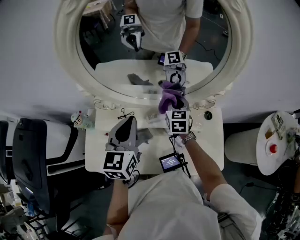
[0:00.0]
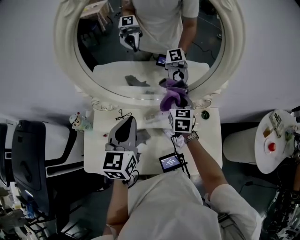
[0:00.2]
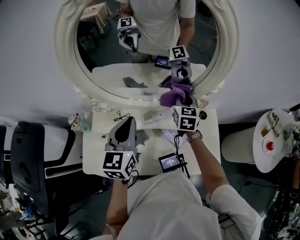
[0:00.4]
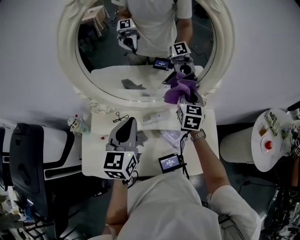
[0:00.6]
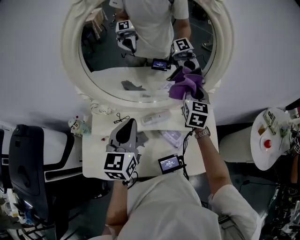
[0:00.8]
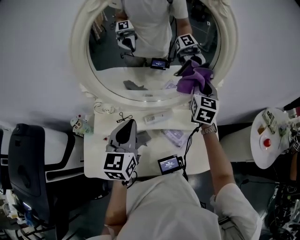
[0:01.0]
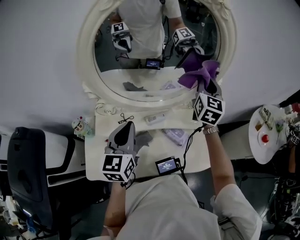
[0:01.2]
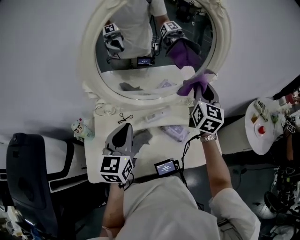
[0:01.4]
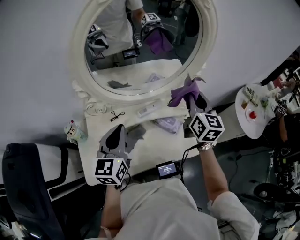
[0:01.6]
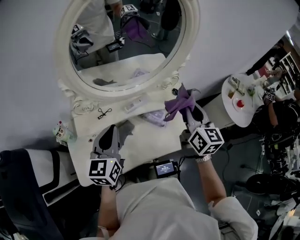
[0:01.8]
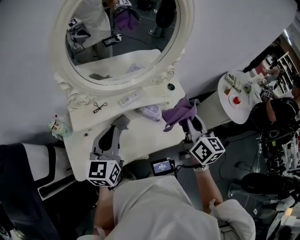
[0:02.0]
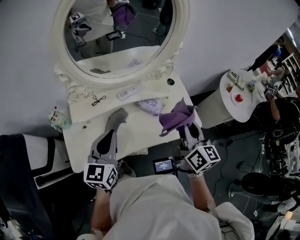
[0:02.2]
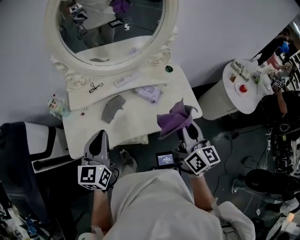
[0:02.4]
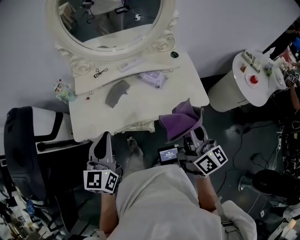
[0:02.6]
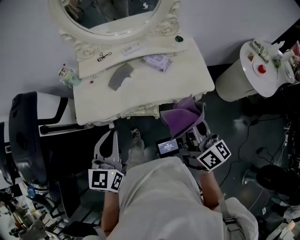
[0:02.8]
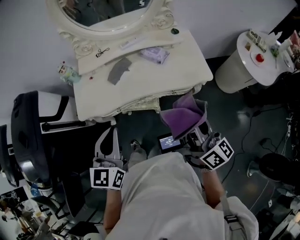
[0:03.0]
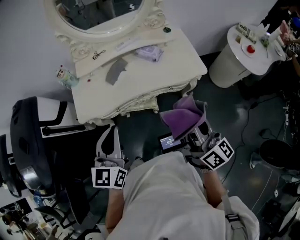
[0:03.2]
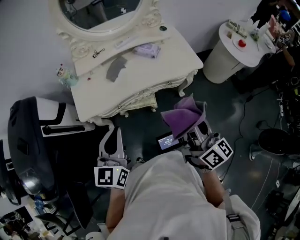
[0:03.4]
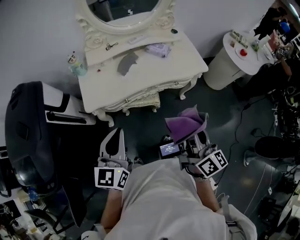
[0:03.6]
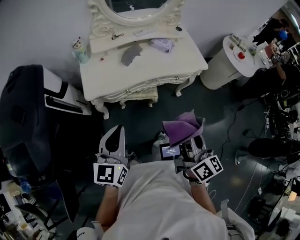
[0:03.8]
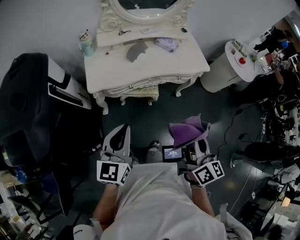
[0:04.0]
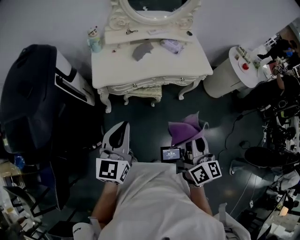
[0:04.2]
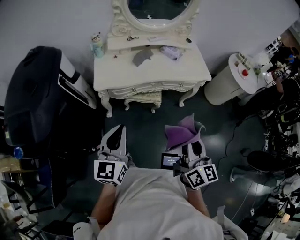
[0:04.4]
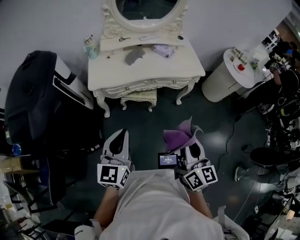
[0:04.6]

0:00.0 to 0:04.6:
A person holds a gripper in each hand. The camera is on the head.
0:00.0 to 0:01.6: The left gripper goes about 10 cm backward and to the left, while the right gripper moves upward and backward, roughly 25 cm, and rotates about 30 degrees.
0:01.6 to 0:03.0: The grippers both shift backward by some 40 cm. The right gripper turns by roughly 40 degrees.
0:03.0 to 0:04.6: The two grippers go roughly 35 cm backward. The right gripper swivels approximately 30 degrees.

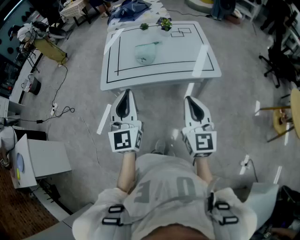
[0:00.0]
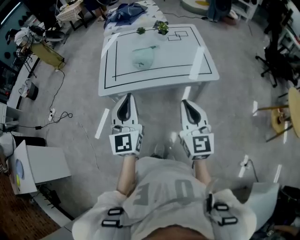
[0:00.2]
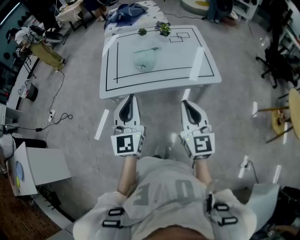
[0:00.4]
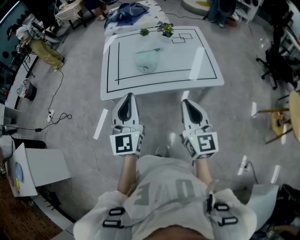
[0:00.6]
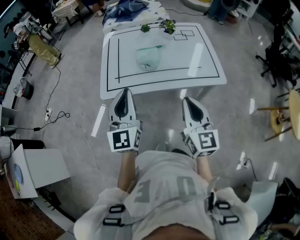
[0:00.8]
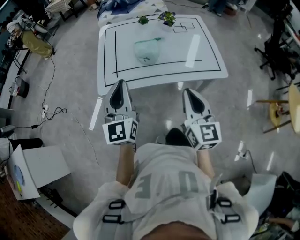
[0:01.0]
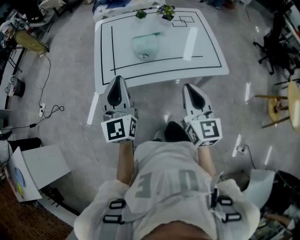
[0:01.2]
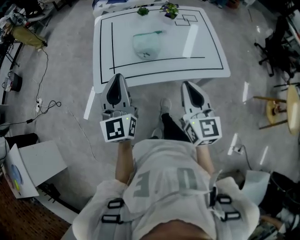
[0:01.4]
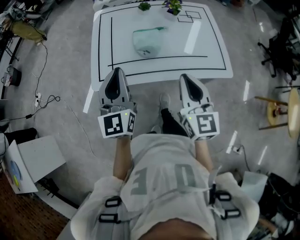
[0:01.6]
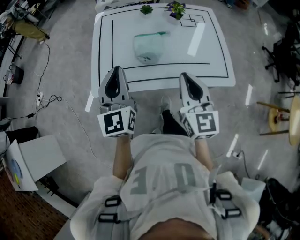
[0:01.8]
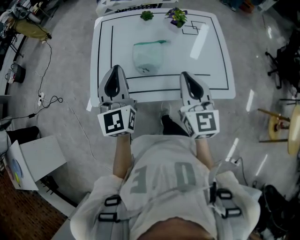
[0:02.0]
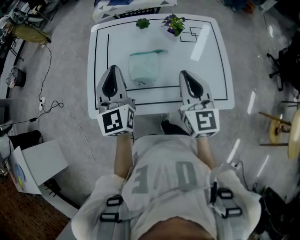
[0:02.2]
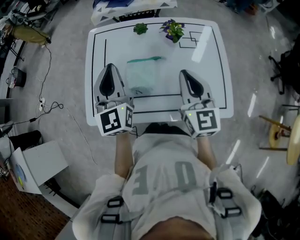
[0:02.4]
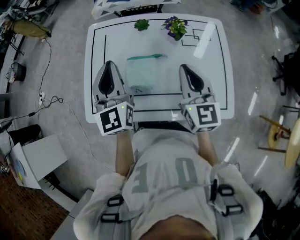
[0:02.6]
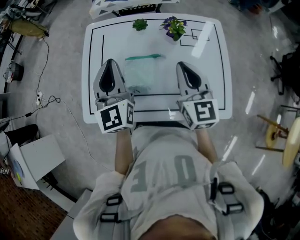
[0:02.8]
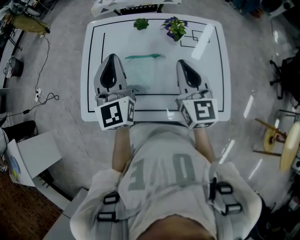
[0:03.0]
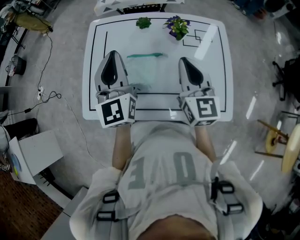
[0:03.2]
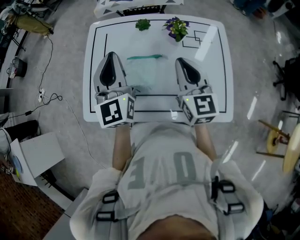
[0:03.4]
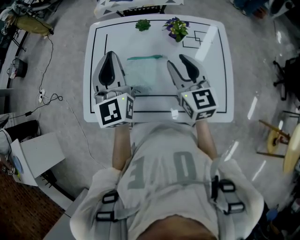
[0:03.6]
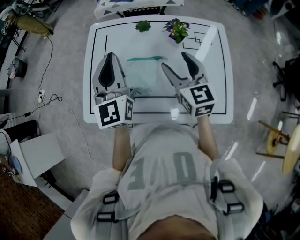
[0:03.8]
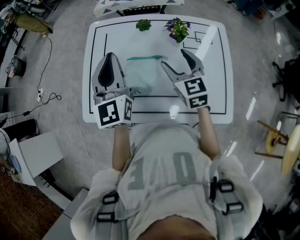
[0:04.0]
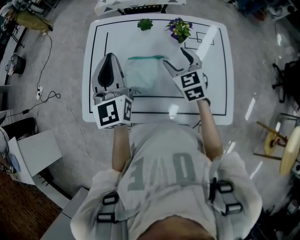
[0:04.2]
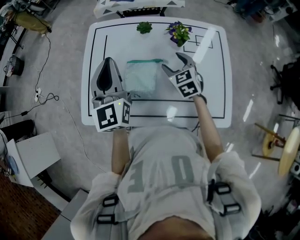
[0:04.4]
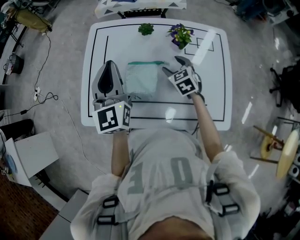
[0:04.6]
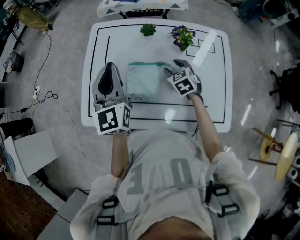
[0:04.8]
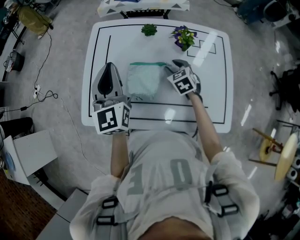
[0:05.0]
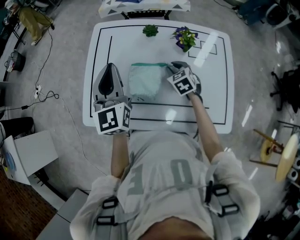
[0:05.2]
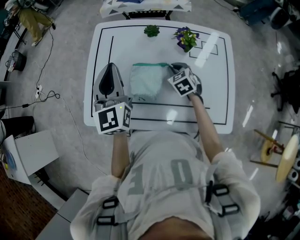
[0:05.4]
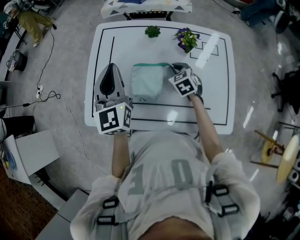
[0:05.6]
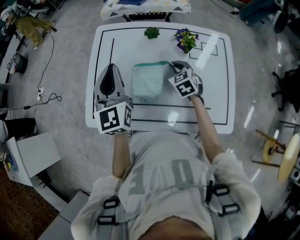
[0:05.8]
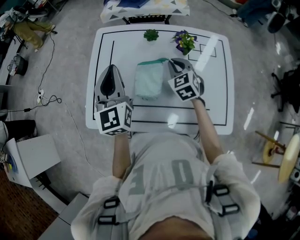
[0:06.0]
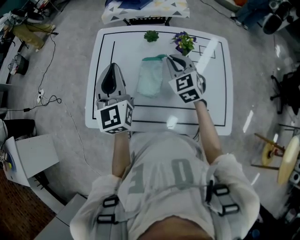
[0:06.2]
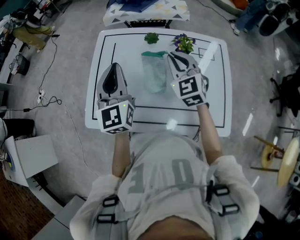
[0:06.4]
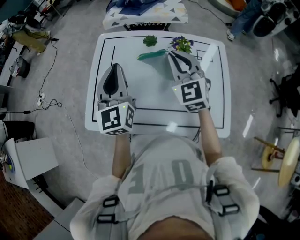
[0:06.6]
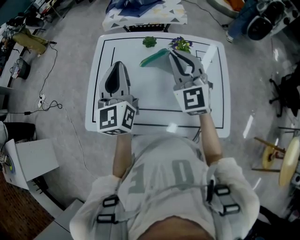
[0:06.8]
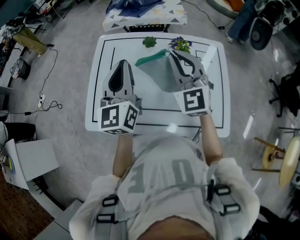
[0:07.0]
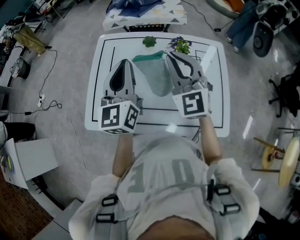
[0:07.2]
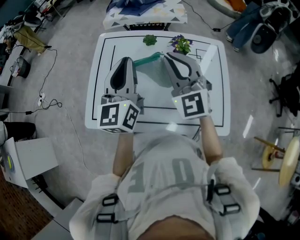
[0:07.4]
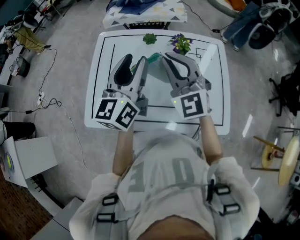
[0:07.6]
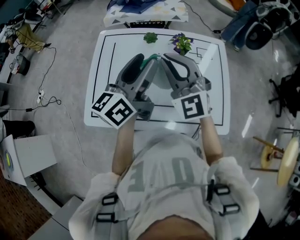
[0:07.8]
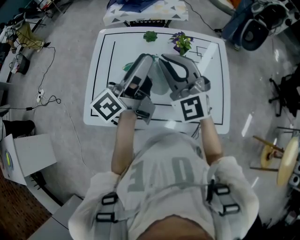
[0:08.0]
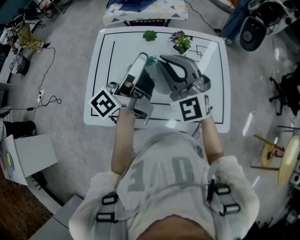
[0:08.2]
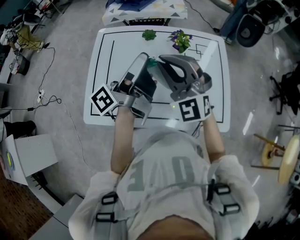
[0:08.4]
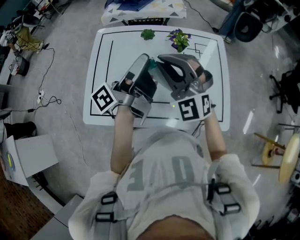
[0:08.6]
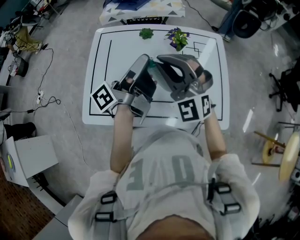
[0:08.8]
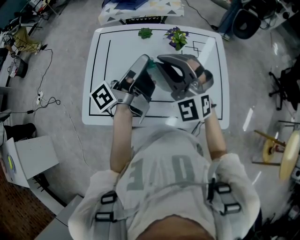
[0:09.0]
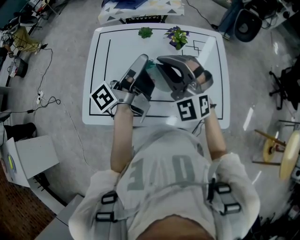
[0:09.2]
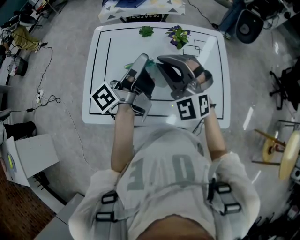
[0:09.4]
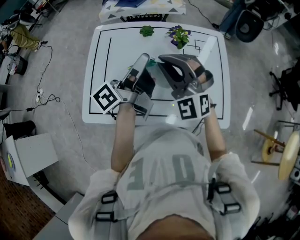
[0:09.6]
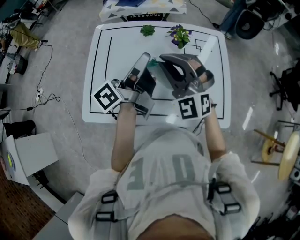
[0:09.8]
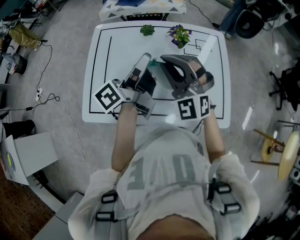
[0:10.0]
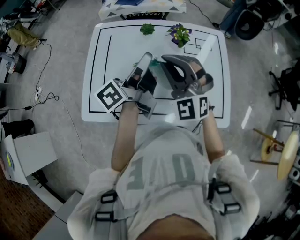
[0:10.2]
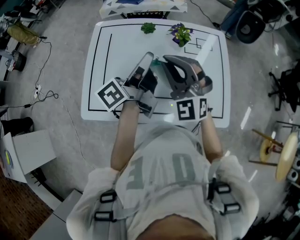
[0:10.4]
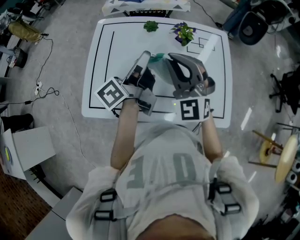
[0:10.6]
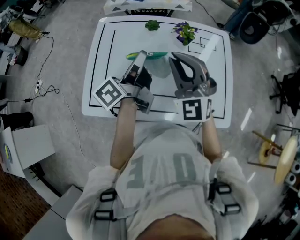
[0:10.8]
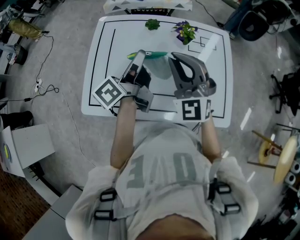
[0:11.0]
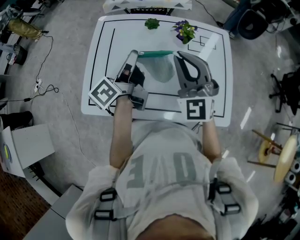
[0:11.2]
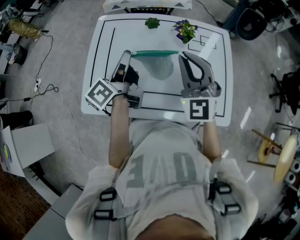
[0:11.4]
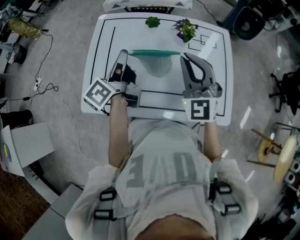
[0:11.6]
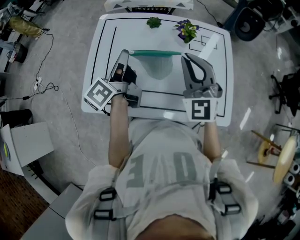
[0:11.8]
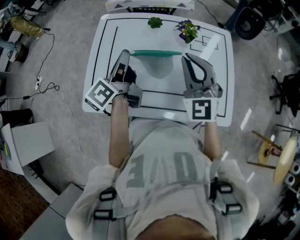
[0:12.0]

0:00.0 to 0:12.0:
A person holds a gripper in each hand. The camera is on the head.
0:00.0 to 0:01.6: Both grippers move forward and to the left, about 20 cm.
0:01.6 to 0:03.0: The left gripper shifts some 25 cm forward and to the right. Meanwhile the right gripper moves forward, roughly 25 cm.
0:03.0 to 0:04.4: The right gripper moves downward and forward, some 20 cm, tilts its fingers some 30 degrees downward, and opens its fingers.
0:04.4 to 0:06.0: The right gripper reaches roughly 5 cm downward, then returns, and closes its fingers.
0:06.0 to 0:07.6: The right gripper heads upward, covering approximately 20 cm, and changes its angle by roughly 40 degrees. Meanwhile the left gripper heads to the right and upward, covering some 10 cm, swivels approximately 30 degrees, and opens its fingers.
0:07.6 to 0:09.0: The left gripper rolls counterclockwise, seen from behind, by roughly 60 degrees, and closes up.
0:09.0 to 0:10.4: The grippers make only small movements.
0:10.4 to 0:12.0: The left gripper travels to the left by about 10 cm, and turns by roughly 20 degrees.

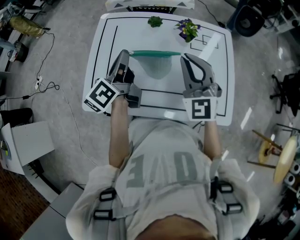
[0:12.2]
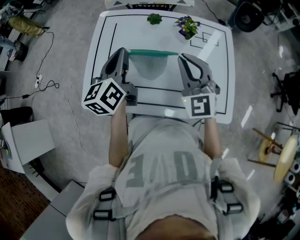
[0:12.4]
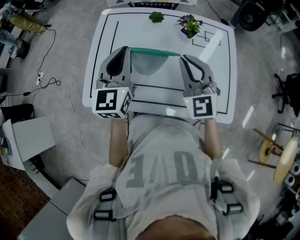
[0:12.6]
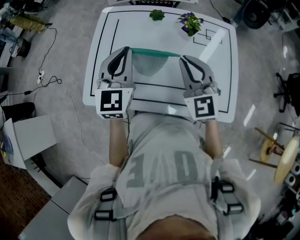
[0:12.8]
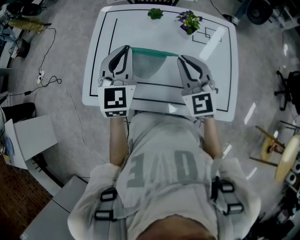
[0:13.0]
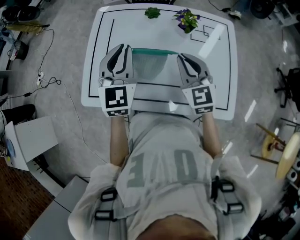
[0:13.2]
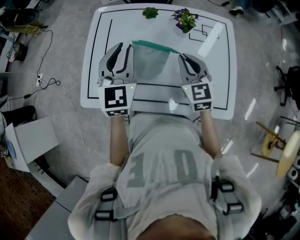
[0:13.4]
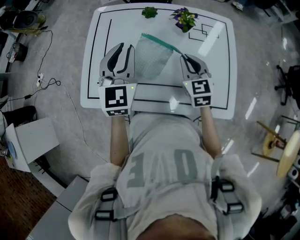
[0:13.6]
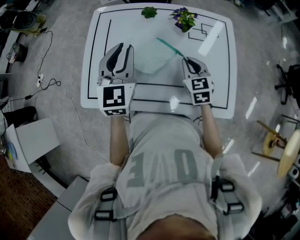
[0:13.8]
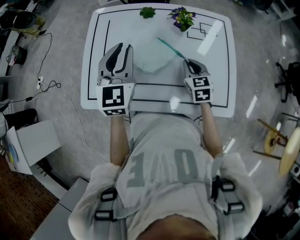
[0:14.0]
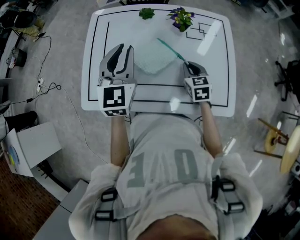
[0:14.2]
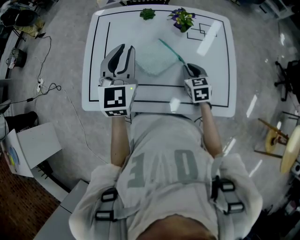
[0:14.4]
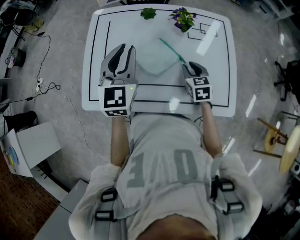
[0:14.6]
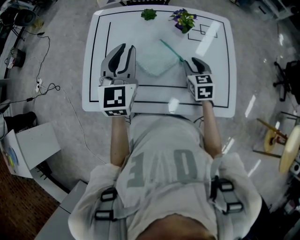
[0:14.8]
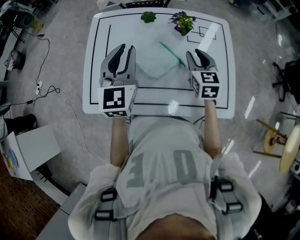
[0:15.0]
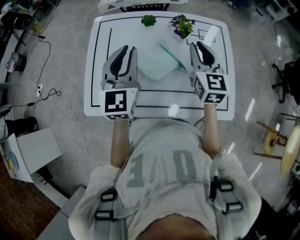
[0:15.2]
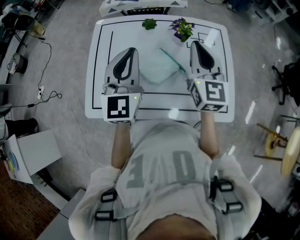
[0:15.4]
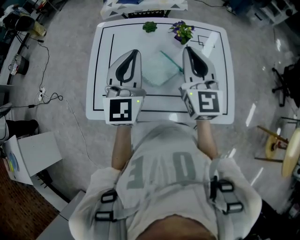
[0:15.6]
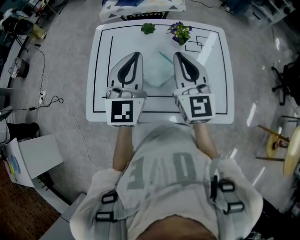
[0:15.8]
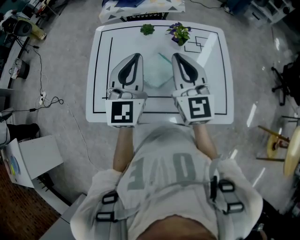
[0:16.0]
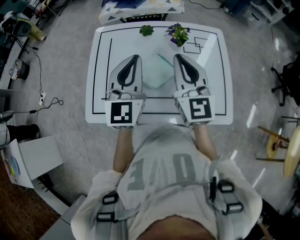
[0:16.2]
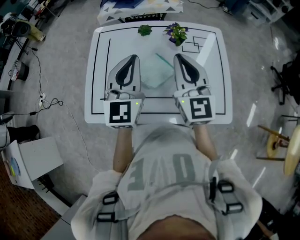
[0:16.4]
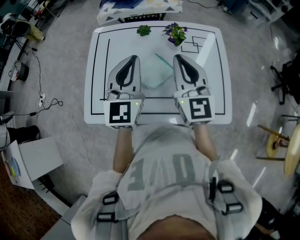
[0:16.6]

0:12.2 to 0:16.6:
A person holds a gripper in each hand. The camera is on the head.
0:12.2 to 0:13.6: The right gripper is displaced downward by roughly 15 cm, and turns by roughly 30 degrees, while the left gripper rotates around the line of its fingers by about 70 degrees, clockwise from behind.
0:13.6 to 0:15.2: The right gripper travels upward by approximately 10 cm.
0:15.2 to 0:16.6: The right gripper goes some 10 cm upward, backward and to the left.

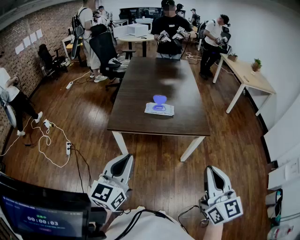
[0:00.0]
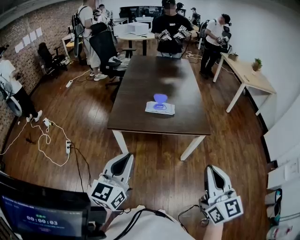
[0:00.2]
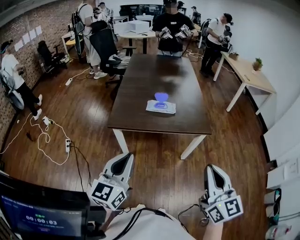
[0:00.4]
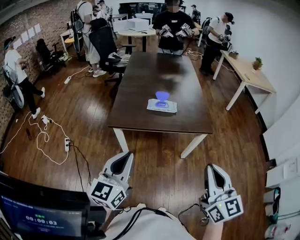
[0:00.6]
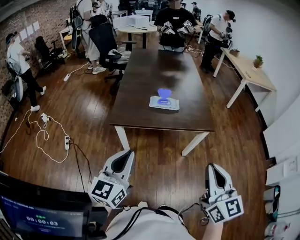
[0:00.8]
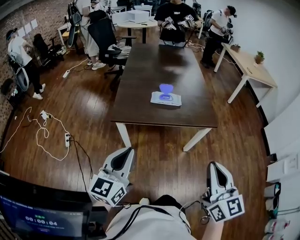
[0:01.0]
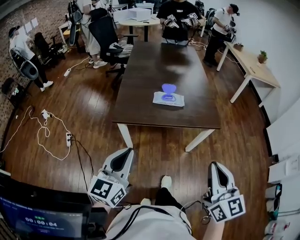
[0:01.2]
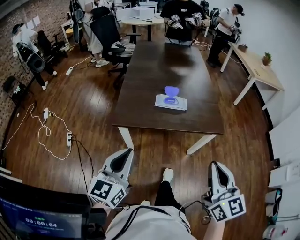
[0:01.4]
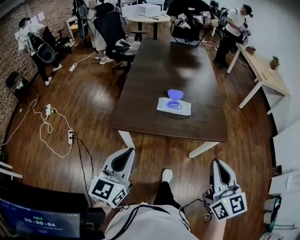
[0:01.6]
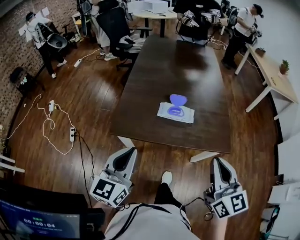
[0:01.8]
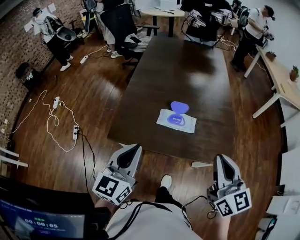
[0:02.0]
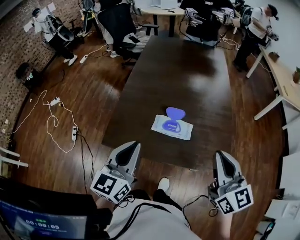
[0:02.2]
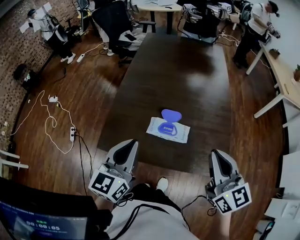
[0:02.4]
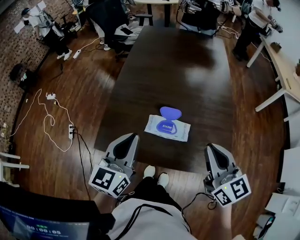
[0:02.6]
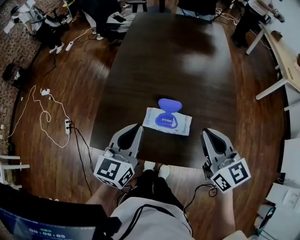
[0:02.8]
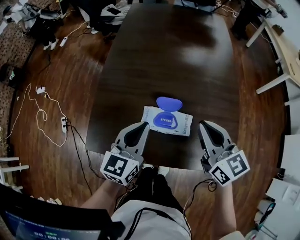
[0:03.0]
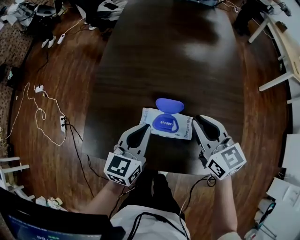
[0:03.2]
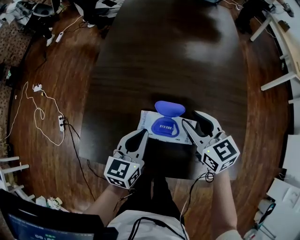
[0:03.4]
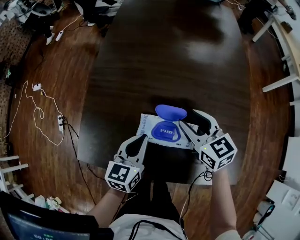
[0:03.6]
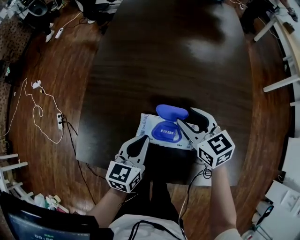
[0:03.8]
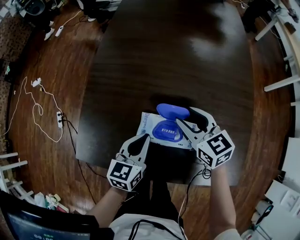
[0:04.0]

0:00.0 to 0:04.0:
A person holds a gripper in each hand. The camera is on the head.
0:00.0 to 0:01.4: The two grippers go roughly 10 cm forward and to the left.
0:01.4 to 0:02.6: Both grippers move forward, approximately 35 cm. The right gripper rotates some 20 degrees.
0:02.6 to 0:04.0: The right gripper heads downward and forward, covering roughly 30 cm, changes its angle by approximately 20 degrees, and opens its fingers. Meanwhile the left gripper goes approximately 25 cm downward, and changes its angle by some 20 degrees.
